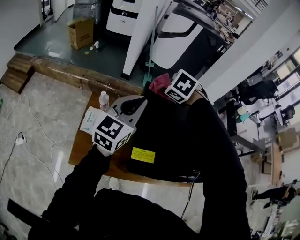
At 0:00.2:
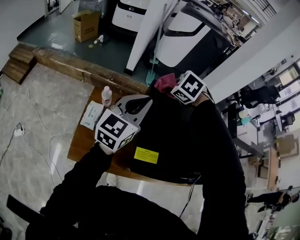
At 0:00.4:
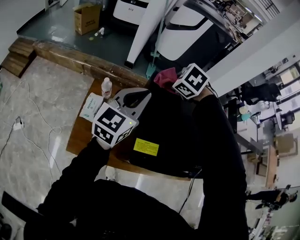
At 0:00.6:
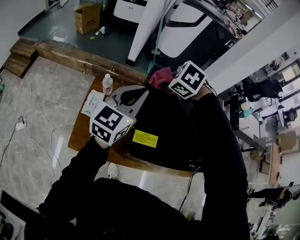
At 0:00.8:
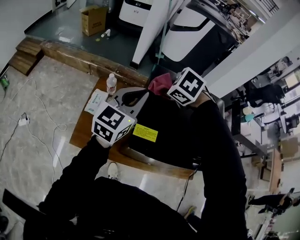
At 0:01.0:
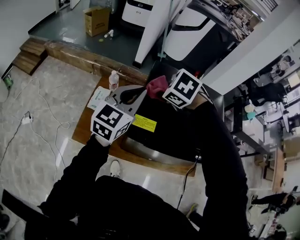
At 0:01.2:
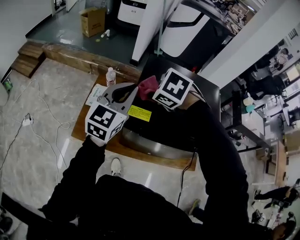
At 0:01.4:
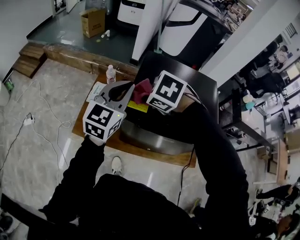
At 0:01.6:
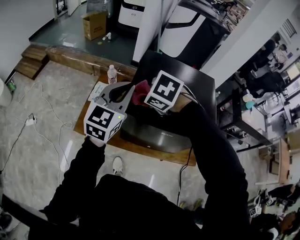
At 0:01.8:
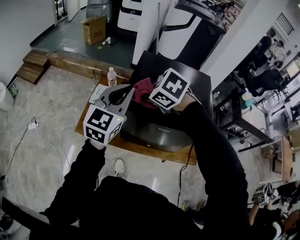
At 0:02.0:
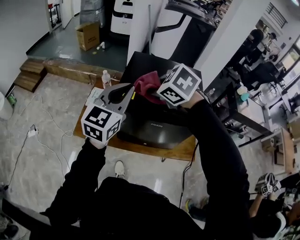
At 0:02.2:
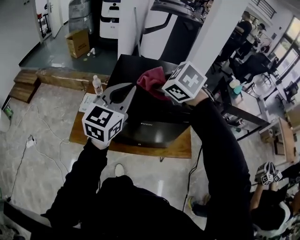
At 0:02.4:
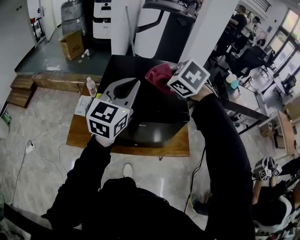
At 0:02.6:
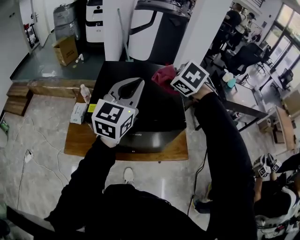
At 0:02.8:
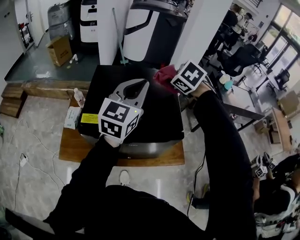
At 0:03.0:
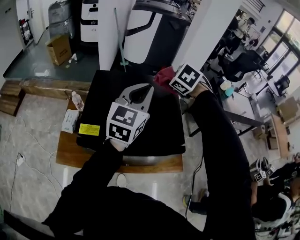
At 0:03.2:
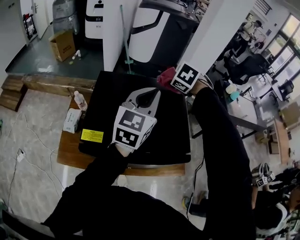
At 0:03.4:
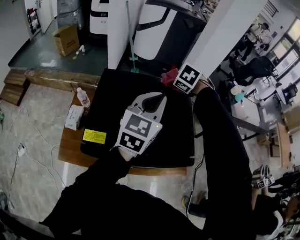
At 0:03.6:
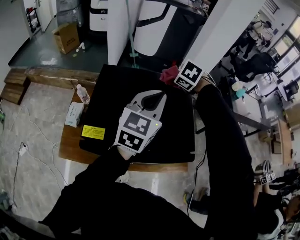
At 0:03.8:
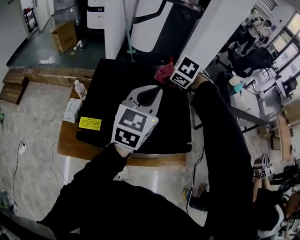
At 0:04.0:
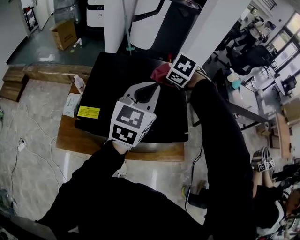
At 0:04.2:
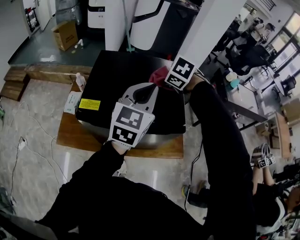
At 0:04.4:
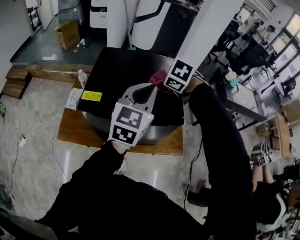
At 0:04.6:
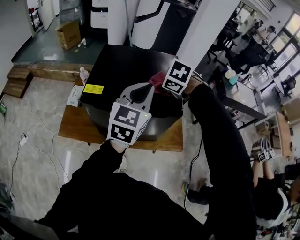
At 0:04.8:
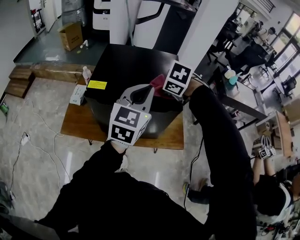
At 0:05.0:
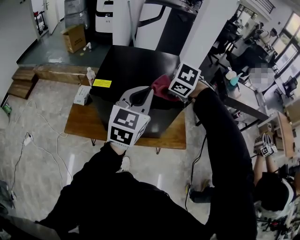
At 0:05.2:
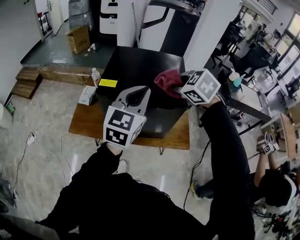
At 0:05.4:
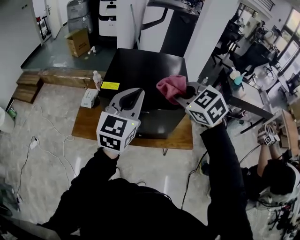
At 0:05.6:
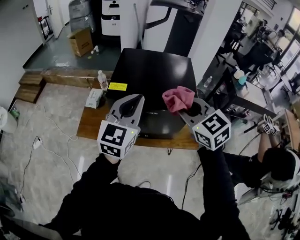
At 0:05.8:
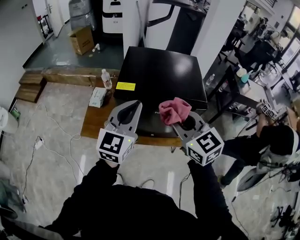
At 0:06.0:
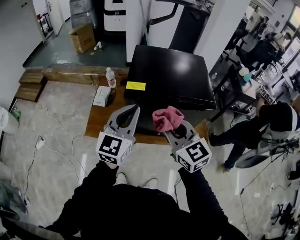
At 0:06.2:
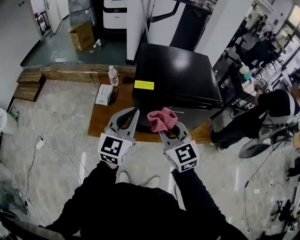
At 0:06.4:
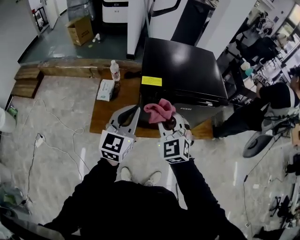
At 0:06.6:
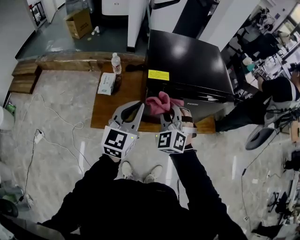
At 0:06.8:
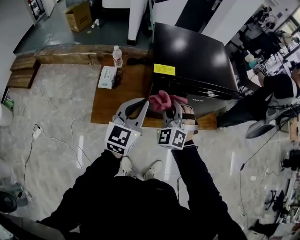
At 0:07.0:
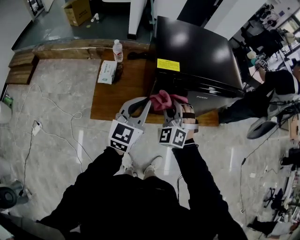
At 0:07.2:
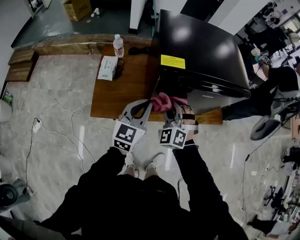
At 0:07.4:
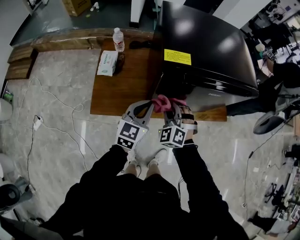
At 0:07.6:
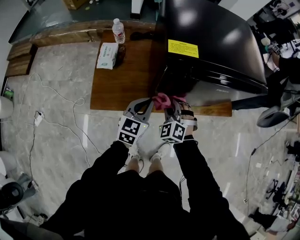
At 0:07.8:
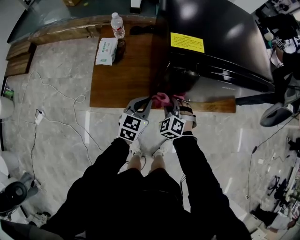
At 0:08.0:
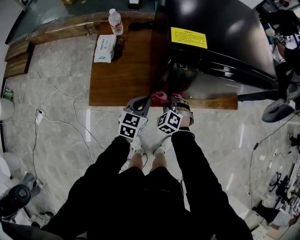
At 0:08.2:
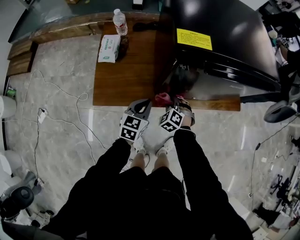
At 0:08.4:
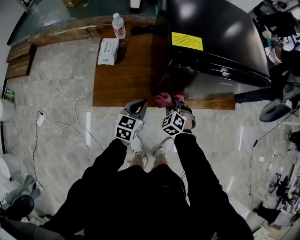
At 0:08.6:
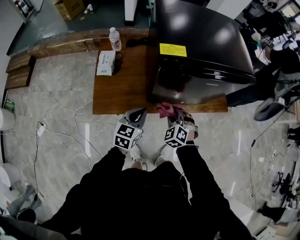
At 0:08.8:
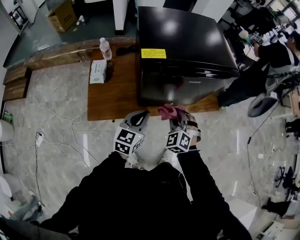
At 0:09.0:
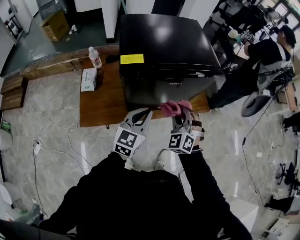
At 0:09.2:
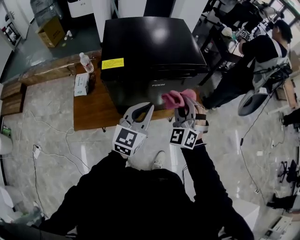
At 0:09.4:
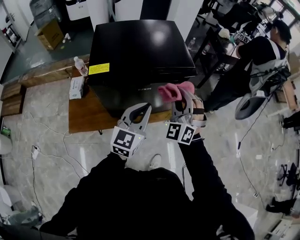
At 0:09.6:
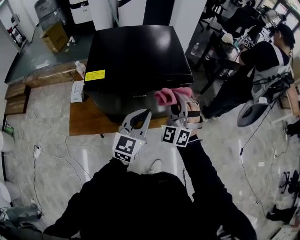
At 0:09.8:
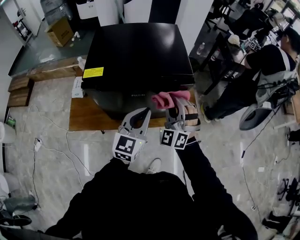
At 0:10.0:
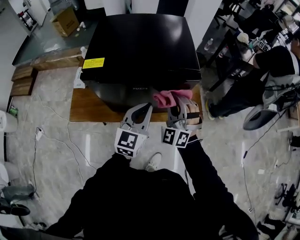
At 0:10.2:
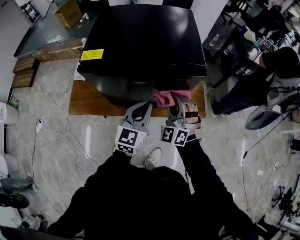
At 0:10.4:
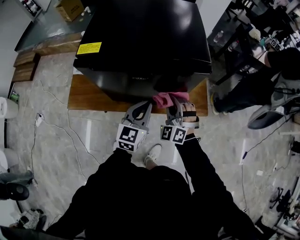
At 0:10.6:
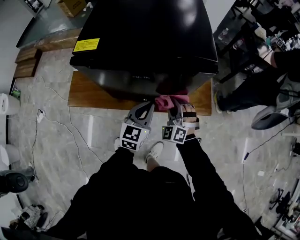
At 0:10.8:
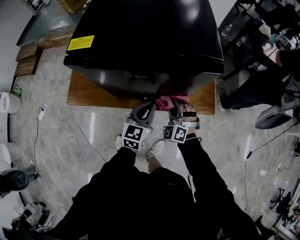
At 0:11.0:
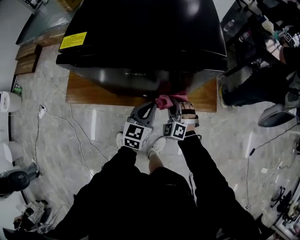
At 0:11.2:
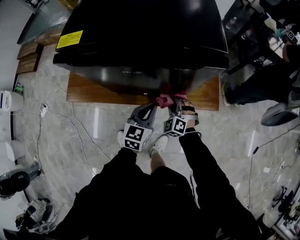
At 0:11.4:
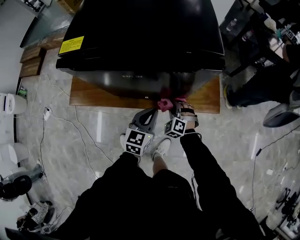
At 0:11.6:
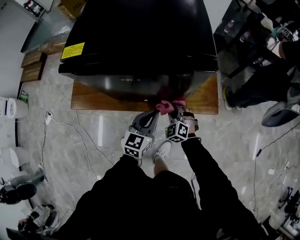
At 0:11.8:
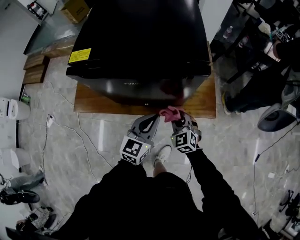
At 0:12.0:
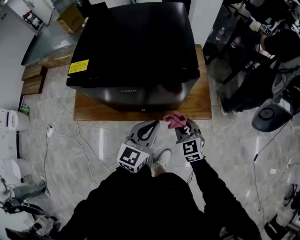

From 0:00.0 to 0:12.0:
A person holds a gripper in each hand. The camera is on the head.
From 0:00.0 to 0:01.6: The left gripper ends up approximately 20 cm from where it was; the right gripper ends up about 30 cm from where it was.
From 0:01.6 to 0:03.0: The left gripper shifts by approximately 30 cm; the right gripper shifts by about 40 cm, and turns by approximately 30 degrees.
From 0:03.0 to 0:04.4: The right gripper moves backward and downward, approximately 15 cm. The left gripper is displaced backward by approximately 10 cm.
From 0:04.4 to 0:06.0: The right gripper ends up about 35 cm from where it was, and points its fingers roughly 60 degrees further upward. Meanwhile the left gripper ends up roughly 25 cm from where it was.
From 0:06.0 to 0:07.6: Both grippers travel together downward, some 35 cm. The left gripper rotates roughly 20 degrees. Meanwhile the right gripper changes its angle by some 50 degrees.
From 0:07.6 to 0:09.0: The left gripper heads upward and to the right, covering roughly 20 cm. The right gripper moves to the right and upward, some 25 cm.
From 0:09.0 to 0:10.4: Both grippers move to the right, forward and downward, roughly 20 cm.
From 0:10.4 to 0:12.0: The two grippers go roughly 5 cm to the right. The right gripper goes downward and returns, about 25 cm each way, and twists about 40 degrees clockwise, seen from behind, while the left gripper goes downward and returns, about 10 cm each way.

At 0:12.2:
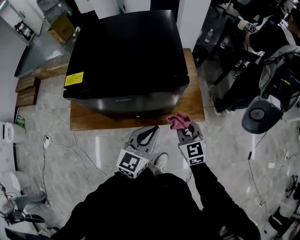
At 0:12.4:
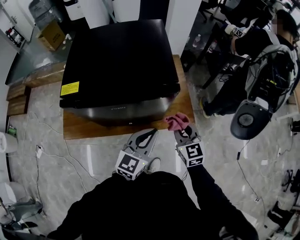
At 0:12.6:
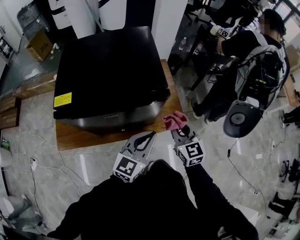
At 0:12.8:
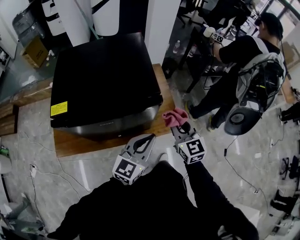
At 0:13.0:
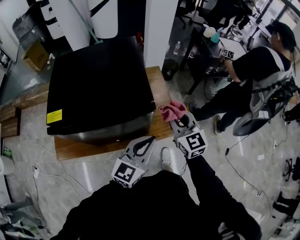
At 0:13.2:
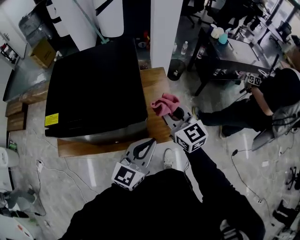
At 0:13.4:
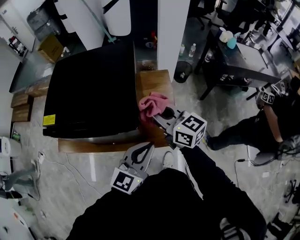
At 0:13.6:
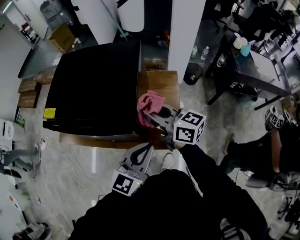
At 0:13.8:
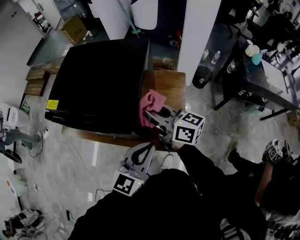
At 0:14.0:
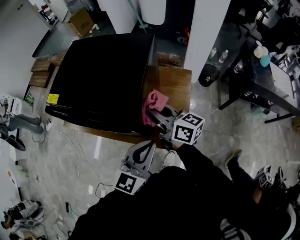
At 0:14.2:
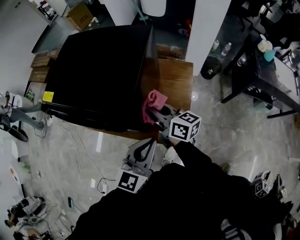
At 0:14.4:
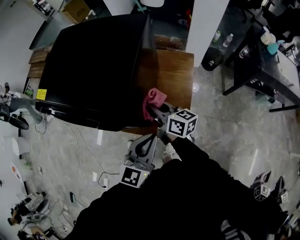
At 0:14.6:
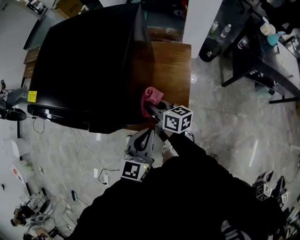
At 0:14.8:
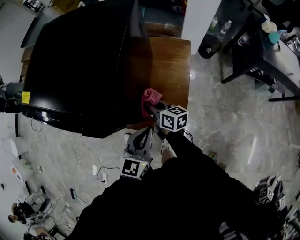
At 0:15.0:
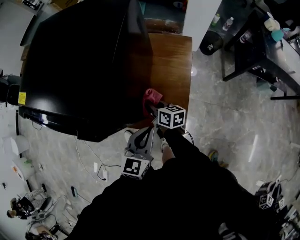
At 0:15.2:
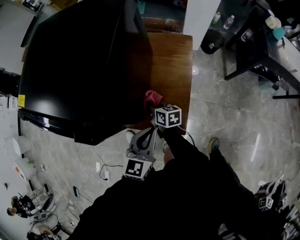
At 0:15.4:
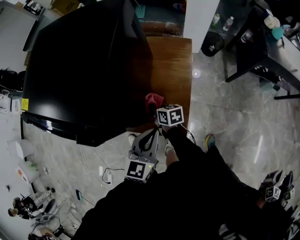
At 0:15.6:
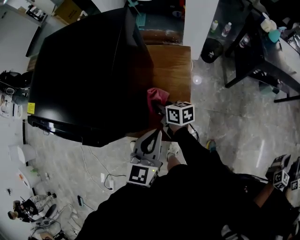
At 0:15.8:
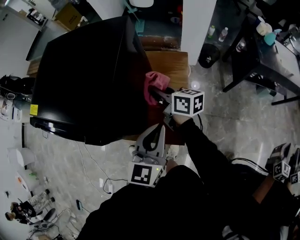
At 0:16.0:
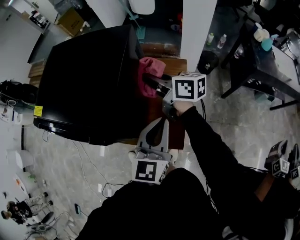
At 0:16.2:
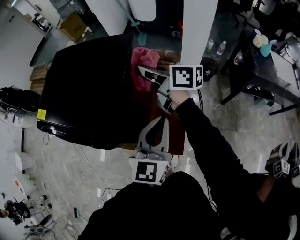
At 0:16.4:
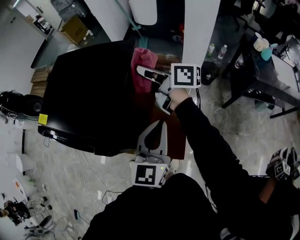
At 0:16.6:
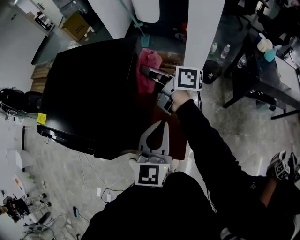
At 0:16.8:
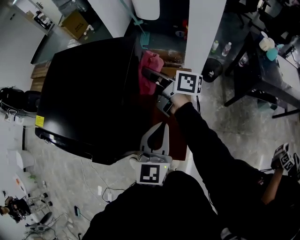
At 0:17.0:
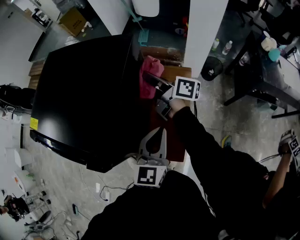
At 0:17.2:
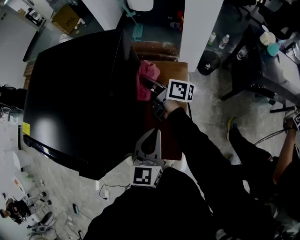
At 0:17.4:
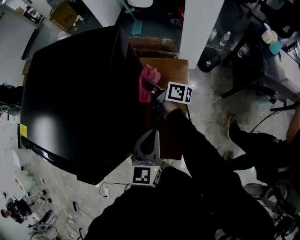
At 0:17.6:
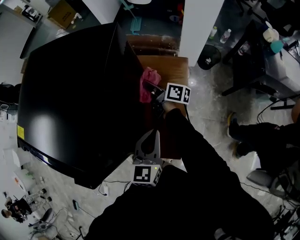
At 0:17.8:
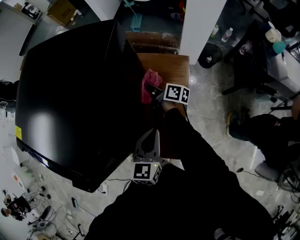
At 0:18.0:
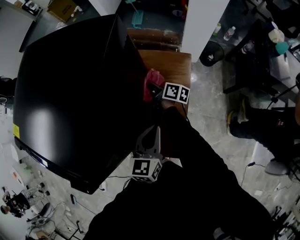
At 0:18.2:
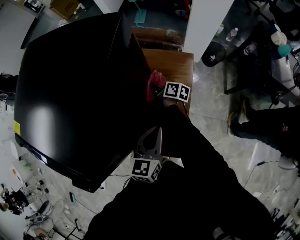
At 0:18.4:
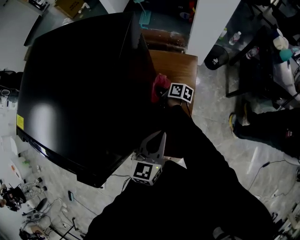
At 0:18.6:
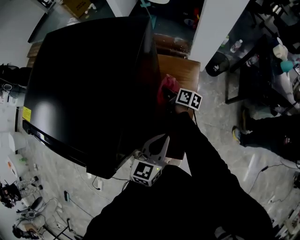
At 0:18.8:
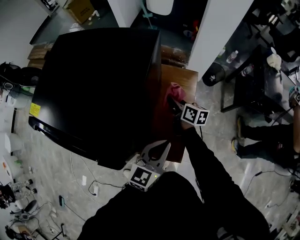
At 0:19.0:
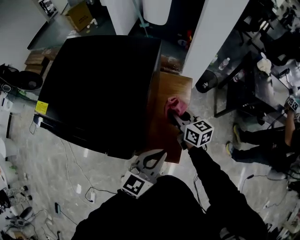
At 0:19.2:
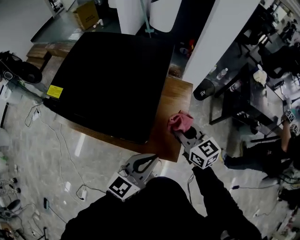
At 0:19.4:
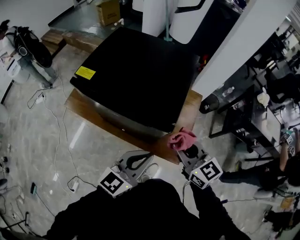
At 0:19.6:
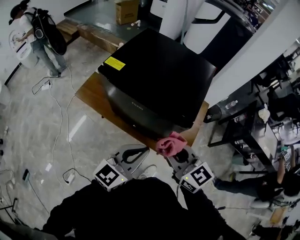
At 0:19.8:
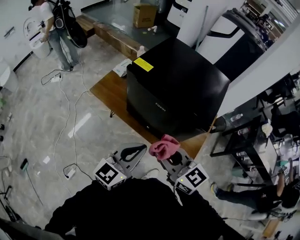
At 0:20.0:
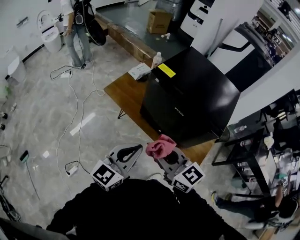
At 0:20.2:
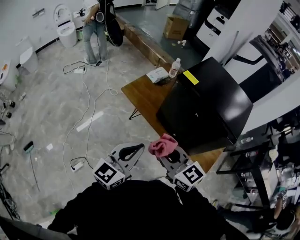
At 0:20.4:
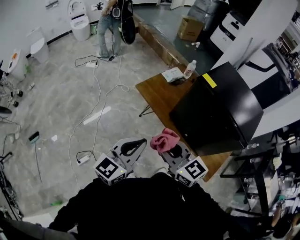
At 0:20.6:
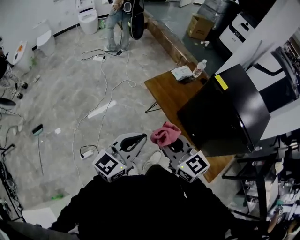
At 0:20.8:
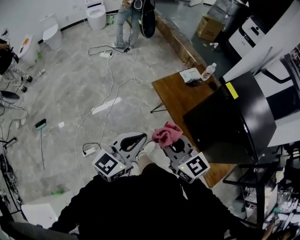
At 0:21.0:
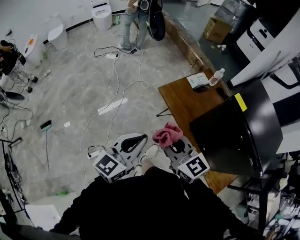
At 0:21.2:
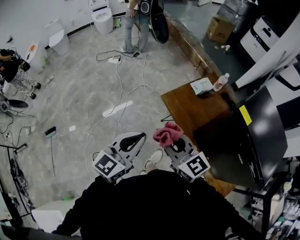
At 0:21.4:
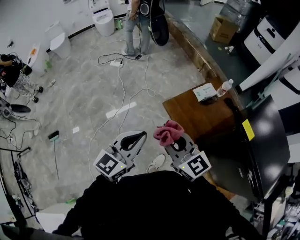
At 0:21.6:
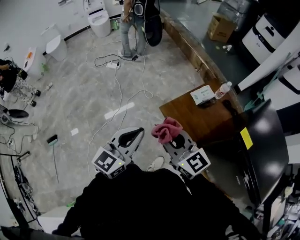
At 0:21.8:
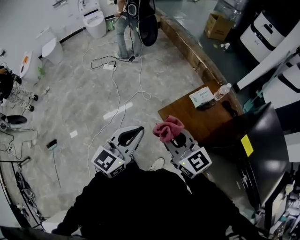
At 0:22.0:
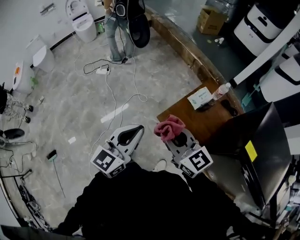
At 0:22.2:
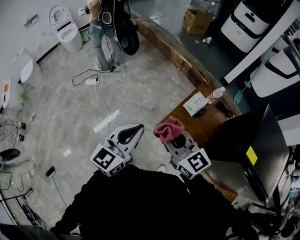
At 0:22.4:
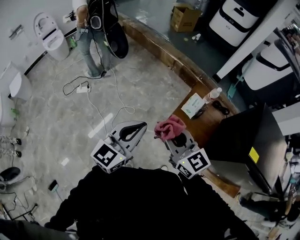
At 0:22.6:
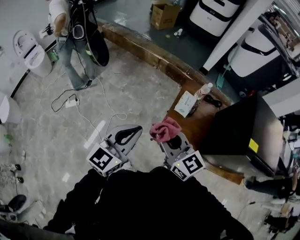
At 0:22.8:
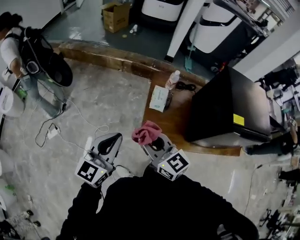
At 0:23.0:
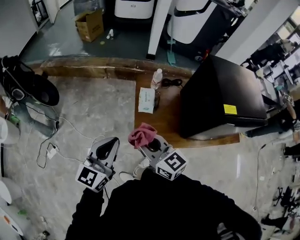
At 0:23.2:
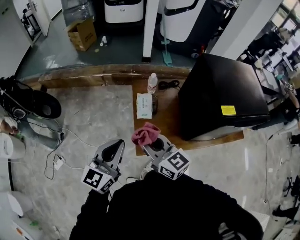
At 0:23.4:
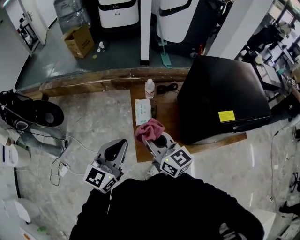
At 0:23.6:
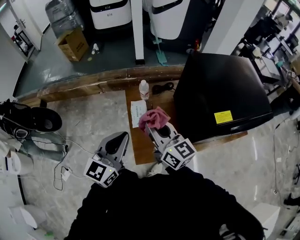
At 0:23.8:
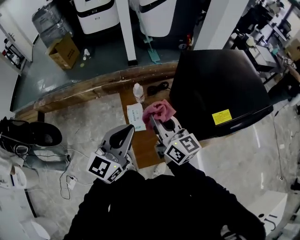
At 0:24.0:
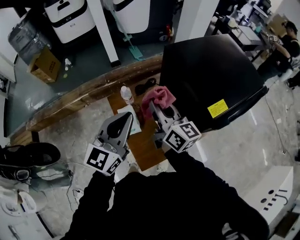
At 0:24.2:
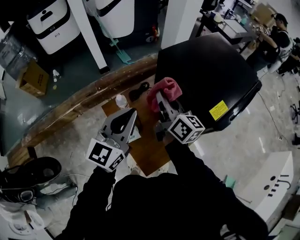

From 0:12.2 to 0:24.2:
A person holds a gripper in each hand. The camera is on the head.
From 0:12.2 to 0:13.8: The right gripper shifts by roughly 25 cm, and rotates roughly 60 degrees; the left gripper ends up roughly 20 cm from where it was.
From 0:13.8 to 0:15.2: The left gripper heads downward, covering about 20 cm, and changes its angle by approximately 20 degrees, while the right gripper travels downward by about 40 cm, and tilts its fingers roughly 30 degrees downward.
From 0:15.2 to 0:16.6: The right gripper shifts about 40 cm upward and forward, and points its fingers about 40 degrees further upward, while the left gripper moves upward, forward and to the right, about 25 cm.
From 0:16.6 to 0:18.2: The right gripper is displaced downward by roughly 40 cm, and tilts its fingers about 30 degrees downward. The left gripper shifts roughly 20 cm downward.
From 0:18.2 to 0:19.8: The pair of grippers is taken to the left and backward, about 50 cm. The left gripper travels upward by roughly 25 cm, and changes its angle by some 20 degrees, while the right gripper goes about 40 cm upward, and rolls counterclockwise, seen from behind, by about 70 degrees.
From 0:19.8 to 0:21.2: The two grippers travel together, approximately 40 cm. The right gripper changes its angle by approximately 20 degrees. Meanwhile the left gripper swivels approximately 30 degrees.
From 0:21.2 to 0:22.6: Both grippers are carried roughly 40 cm. The left gripper swivels approximately 30 degrees. Meanwhile the right gripper changes its angle by approximately 40 degrees.
From 0:22.6 to 0:24.2: Both grippers are carried some 50 cm. The right gripper turns by roughly 80 degrees, while the left gripper swivels some 50 degrees.
